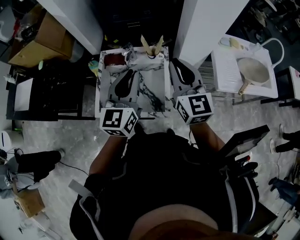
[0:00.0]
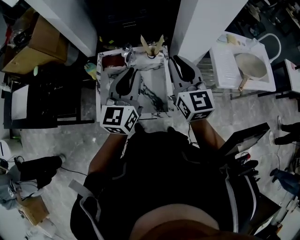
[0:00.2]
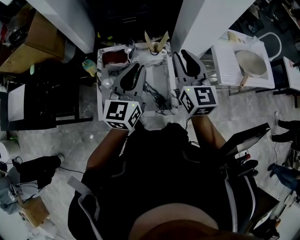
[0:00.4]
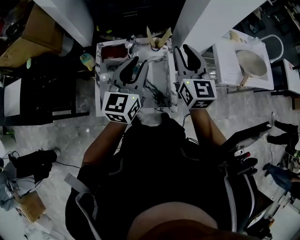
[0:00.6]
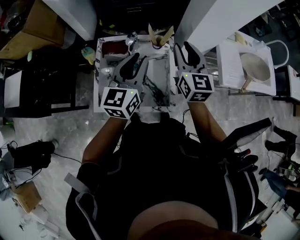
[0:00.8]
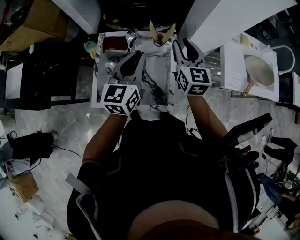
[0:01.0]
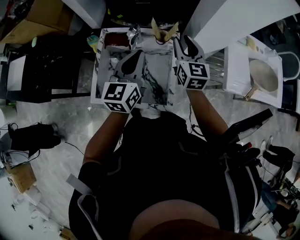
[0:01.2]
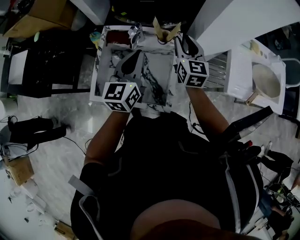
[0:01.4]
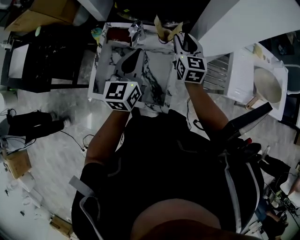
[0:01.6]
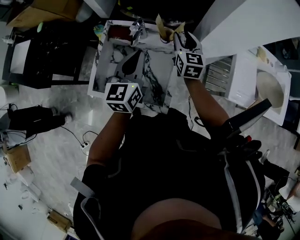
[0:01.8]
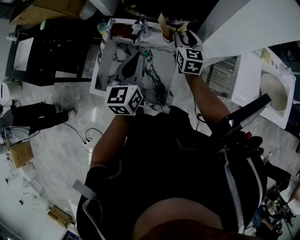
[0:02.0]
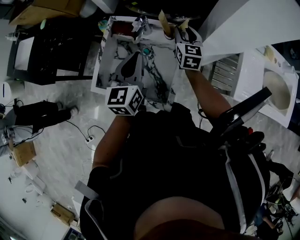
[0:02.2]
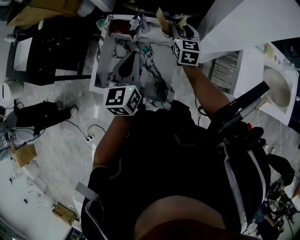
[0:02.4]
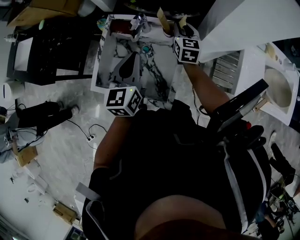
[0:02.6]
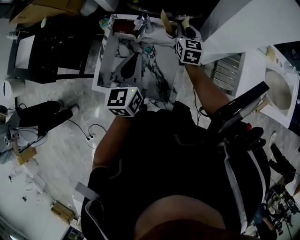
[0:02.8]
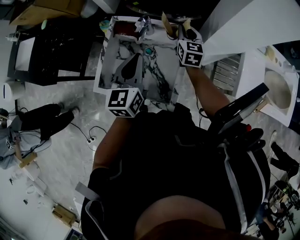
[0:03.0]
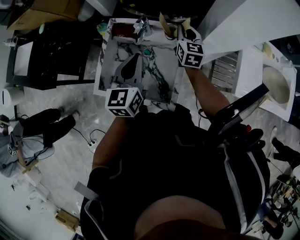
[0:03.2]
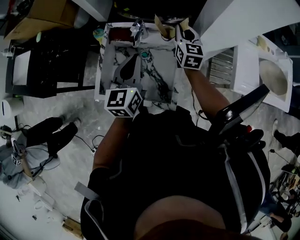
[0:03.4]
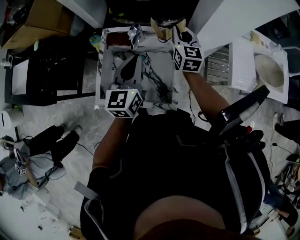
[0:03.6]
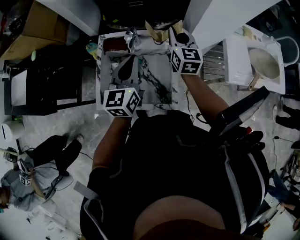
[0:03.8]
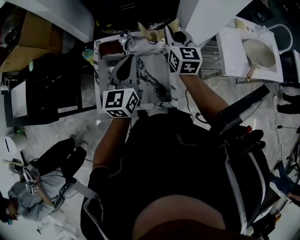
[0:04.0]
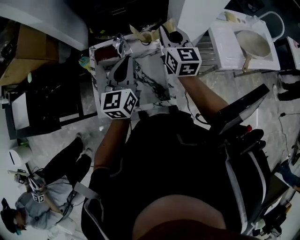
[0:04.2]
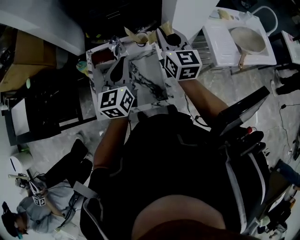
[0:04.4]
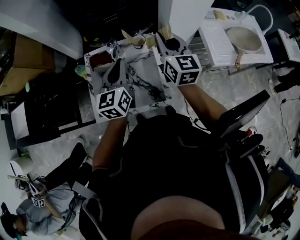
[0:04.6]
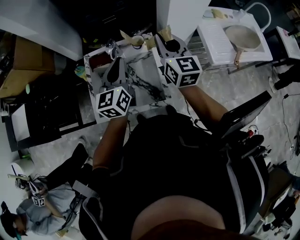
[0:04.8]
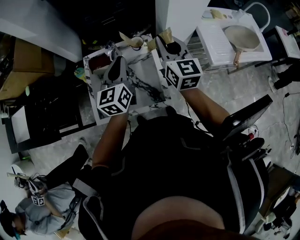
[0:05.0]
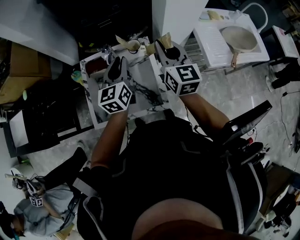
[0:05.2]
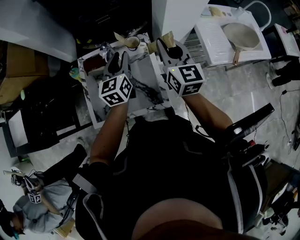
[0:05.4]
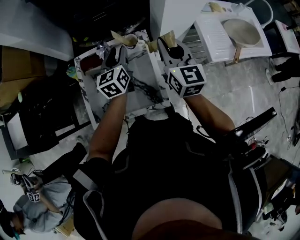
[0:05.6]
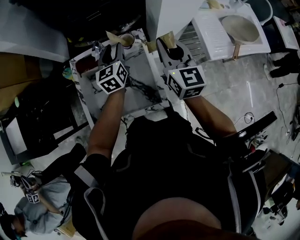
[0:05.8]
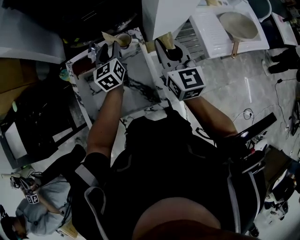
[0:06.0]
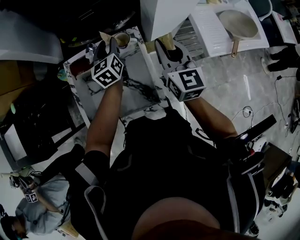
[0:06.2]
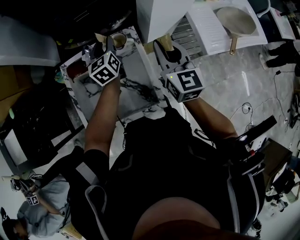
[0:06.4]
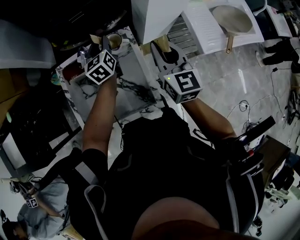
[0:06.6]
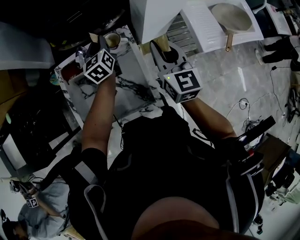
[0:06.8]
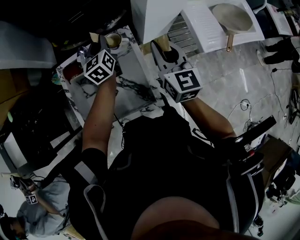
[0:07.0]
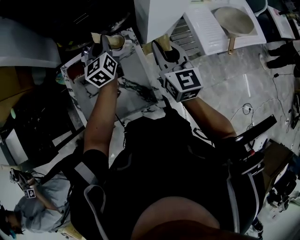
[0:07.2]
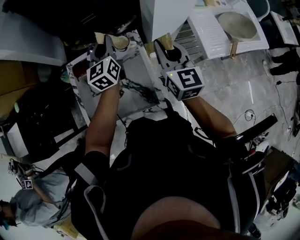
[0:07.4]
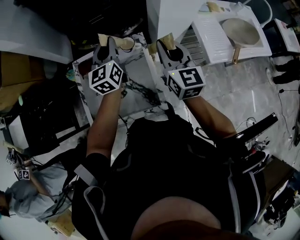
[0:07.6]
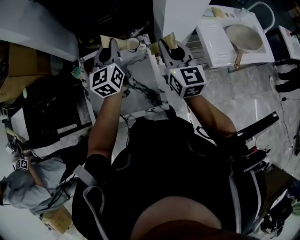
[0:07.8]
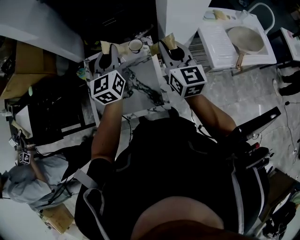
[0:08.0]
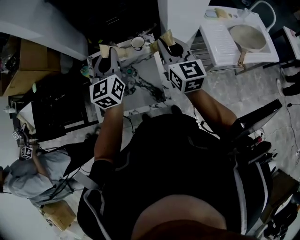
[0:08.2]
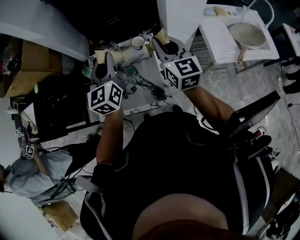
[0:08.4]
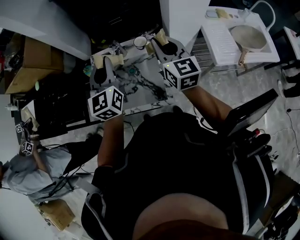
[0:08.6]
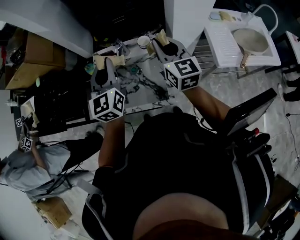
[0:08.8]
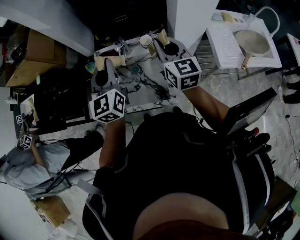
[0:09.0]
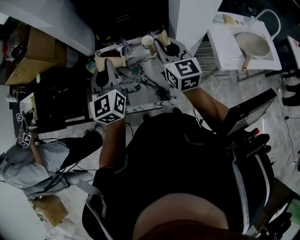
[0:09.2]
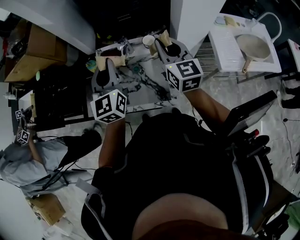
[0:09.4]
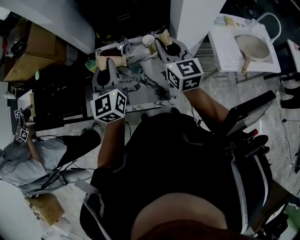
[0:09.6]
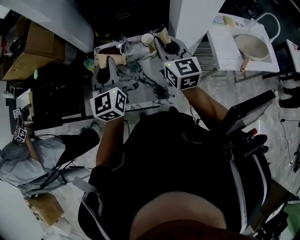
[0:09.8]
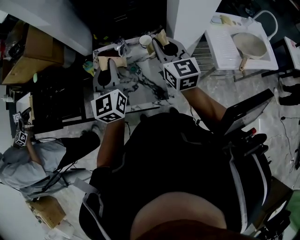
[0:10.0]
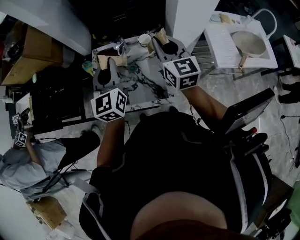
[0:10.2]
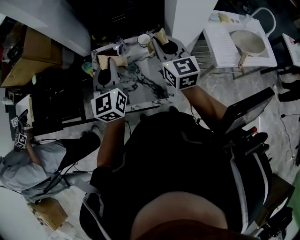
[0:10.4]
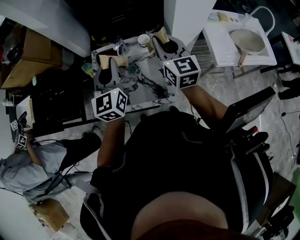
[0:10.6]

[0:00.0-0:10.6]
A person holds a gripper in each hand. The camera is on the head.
0:00.0 to 0:01.6: The right gripper shifts some 25 cm forward and downward, and opens its fingers, while the left gripper shifts roughly 15 cm downward and forward.
0:01.6 to 0:03.0: The right gripper shifts roughly 10 cm downward and forward, and closes.
0:03.0 to 0:04.6: The right gripper heads upward and backward, covering about 25 cm.
0:04.6 to 0:06.0: The right gripper shifts by roughly 5 cm. Meanwhile the left gripper heads forward and downward, covering approximately 20 cm, and opens.
0:06.0 to 0:07.6: The left gripper goes roughly 10 cm upward, and closes up.
0:07.6 to 0:09.0: The left gripper is displaced backward, to the left and upward by about 20 cm, while the right gripper is displaced to the left by some 5 cm.
0:09.0 to 0:10.6: There are only small adjustments of the grippers.

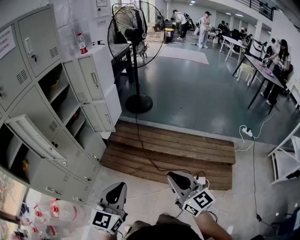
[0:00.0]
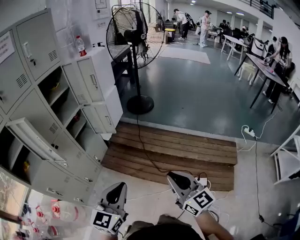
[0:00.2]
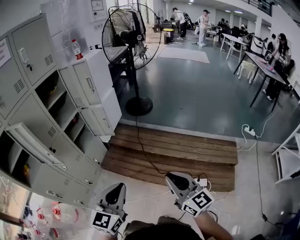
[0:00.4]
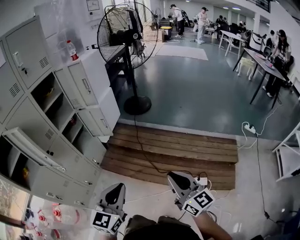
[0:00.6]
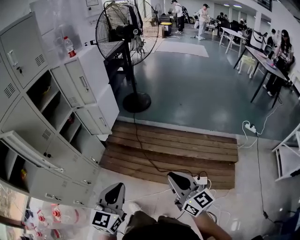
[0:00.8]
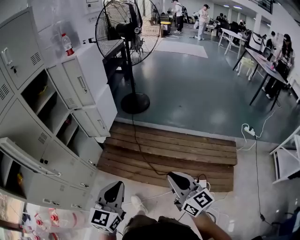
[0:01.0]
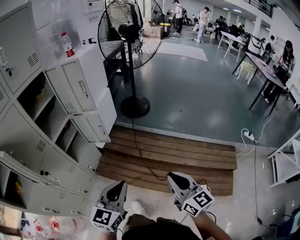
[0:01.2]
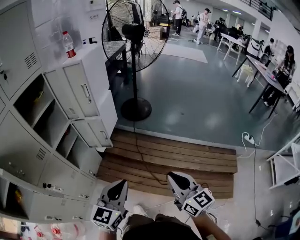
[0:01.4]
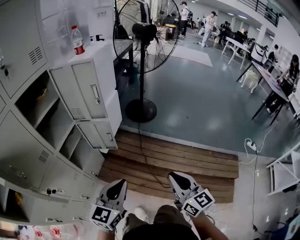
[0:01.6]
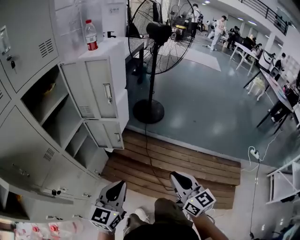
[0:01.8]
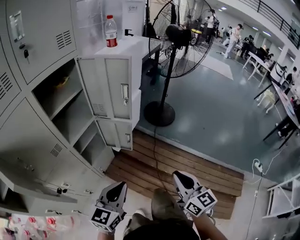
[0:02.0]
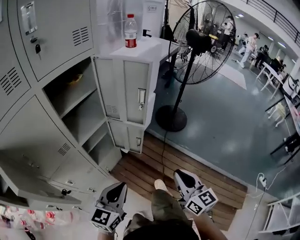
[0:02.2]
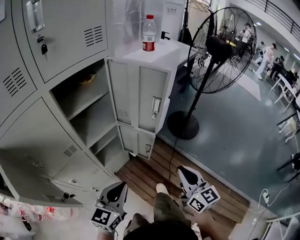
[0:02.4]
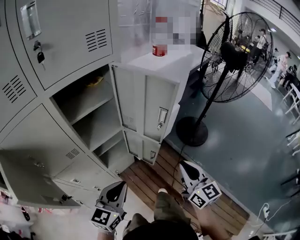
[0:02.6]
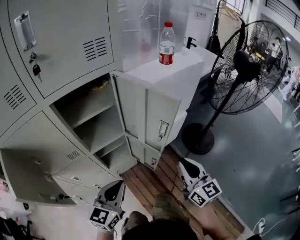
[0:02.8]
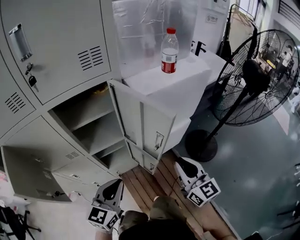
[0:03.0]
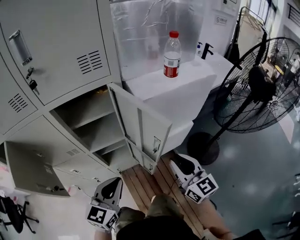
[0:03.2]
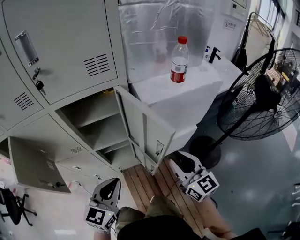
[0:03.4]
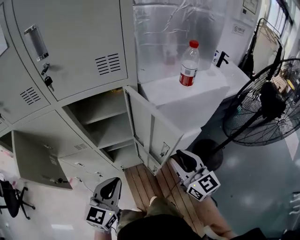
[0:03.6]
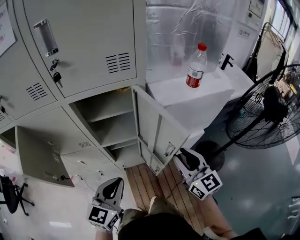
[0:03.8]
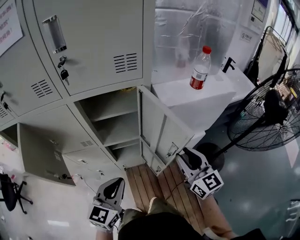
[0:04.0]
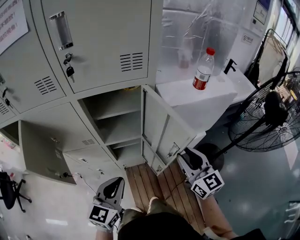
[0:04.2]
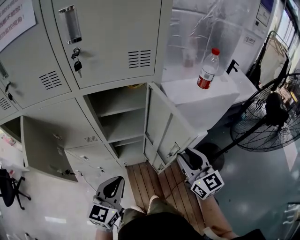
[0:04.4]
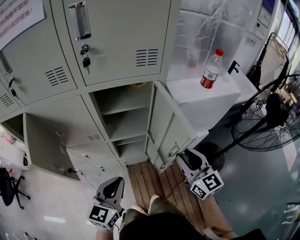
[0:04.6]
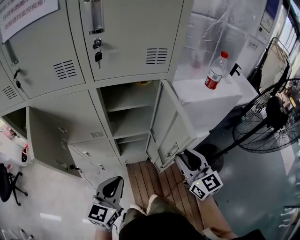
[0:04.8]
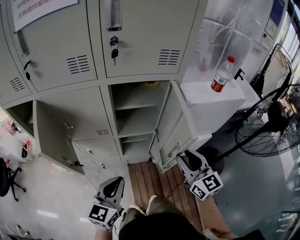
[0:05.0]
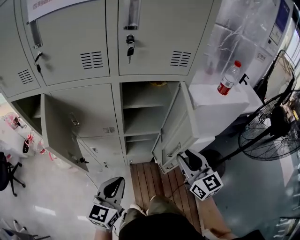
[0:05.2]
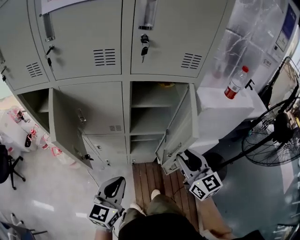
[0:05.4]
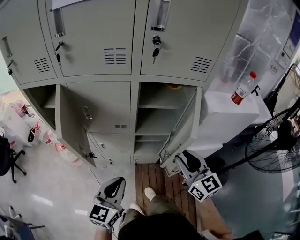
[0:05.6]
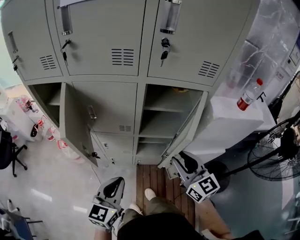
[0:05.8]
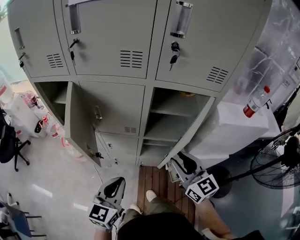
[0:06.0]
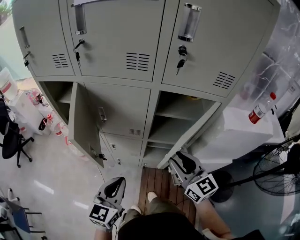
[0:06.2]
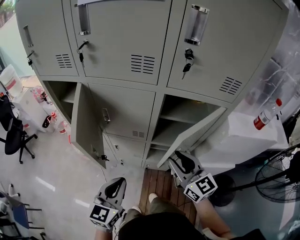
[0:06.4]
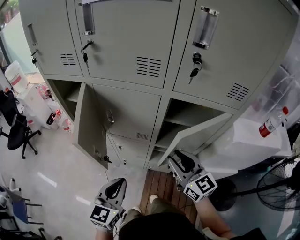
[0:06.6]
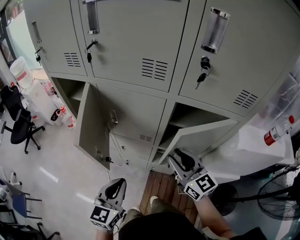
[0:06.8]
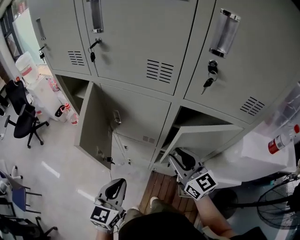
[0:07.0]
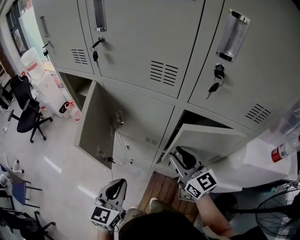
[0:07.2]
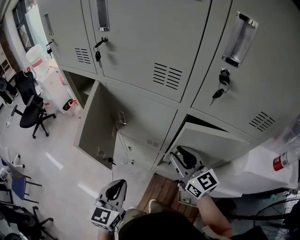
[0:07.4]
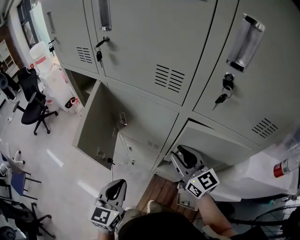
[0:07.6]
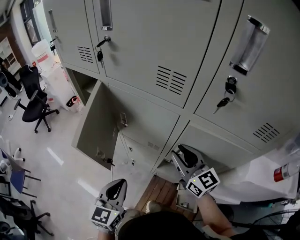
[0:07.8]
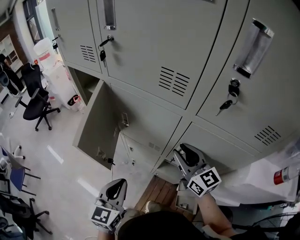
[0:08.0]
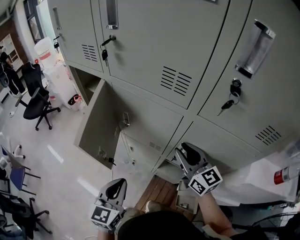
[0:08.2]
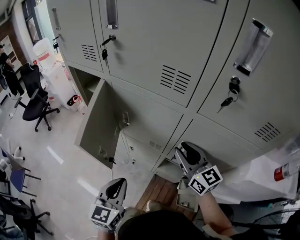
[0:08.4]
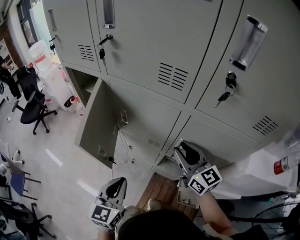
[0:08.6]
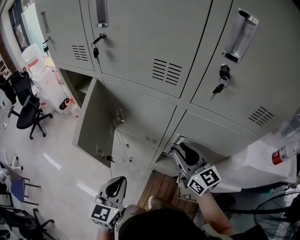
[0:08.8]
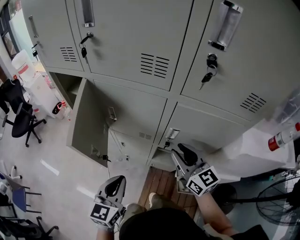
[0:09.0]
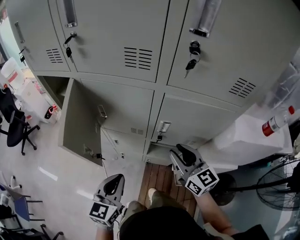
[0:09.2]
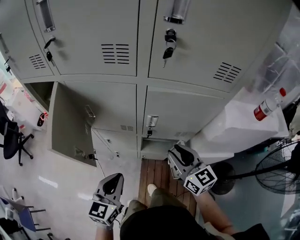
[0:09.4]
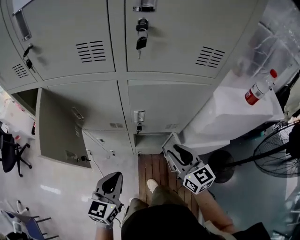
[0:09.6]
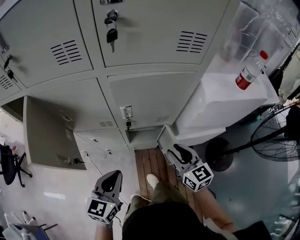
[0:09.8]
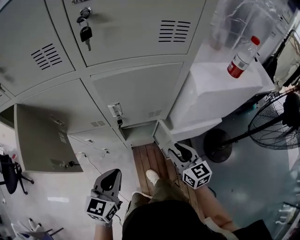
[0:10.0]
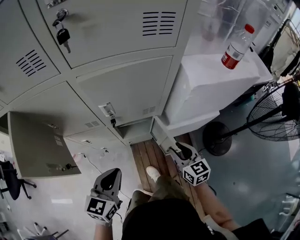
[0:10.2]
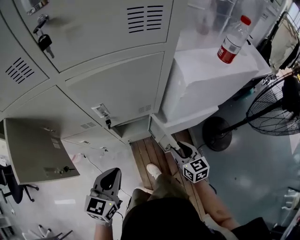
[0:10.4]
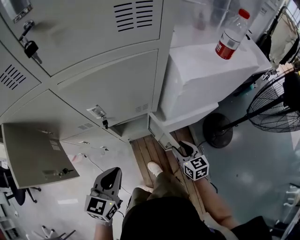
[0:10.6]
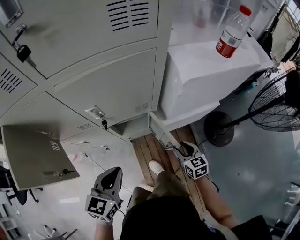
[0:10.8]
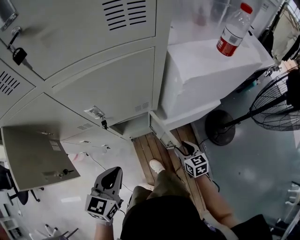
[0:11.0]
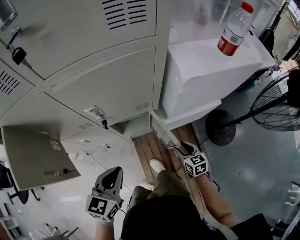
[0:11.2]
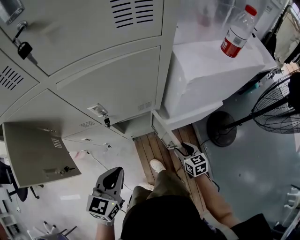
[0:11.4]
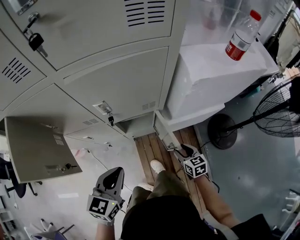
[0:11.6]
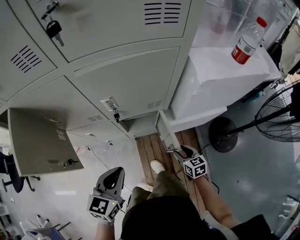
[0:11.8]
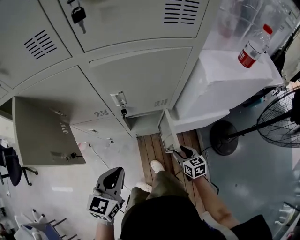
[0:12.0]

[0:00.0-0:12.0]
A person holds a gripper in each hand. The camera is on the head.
0:00.0 to 0:01.6: Both grippers move forward, some 30 cm.
0:01.6 to 0:03.0: The right gripper changes place by about 50 cm, and turns by some 40 degrees. The left gripper moves about 30 cm, and rotates some 40 degrees.
0:03.0 to 0:04.4: The left gripper ends up about 5 cm from where it was. Meanwhile the right gripper moves forward and upward, some 10 cm.
0:04.4 to 0:06.0: The grippers both shift to the left by about 20 cm. The right gripper changes its angle by roughly 20 degrees.
0:06.0 to 0:07.6: The right gripper travels forward by some 15 cm, and changes its angle by about 20 degrees, while the left gripper shifts some 5 cm forward, and turns by roughly 20 degrees.
0:07.6 to 0:09.0: The grippers stay close to where they were, moving slightly.
0:09.0 to 0:10.4: The right gripper shifts by approximately 35 cm, and rotates approximately 40 degrees. The left gripper ends up about 15 cm from where it was, and turns by roughly 30 degrees.
0:10.4 to 0:12.0: The right gripper shifts approximately 10 cm downward.

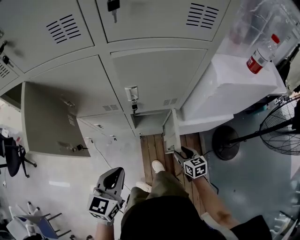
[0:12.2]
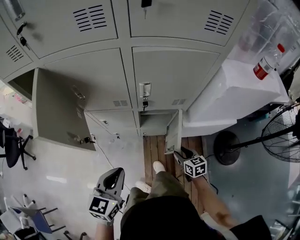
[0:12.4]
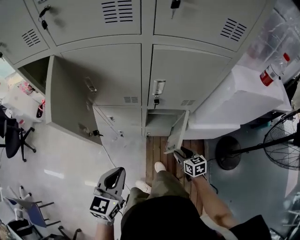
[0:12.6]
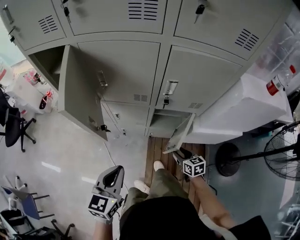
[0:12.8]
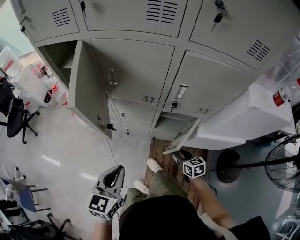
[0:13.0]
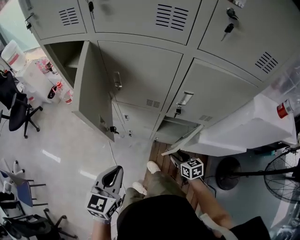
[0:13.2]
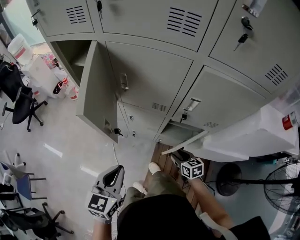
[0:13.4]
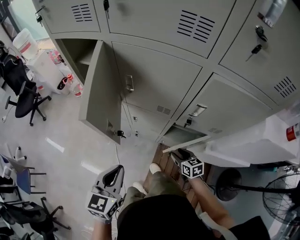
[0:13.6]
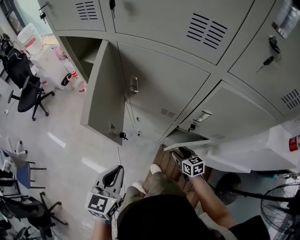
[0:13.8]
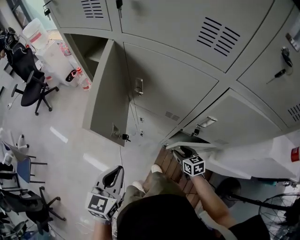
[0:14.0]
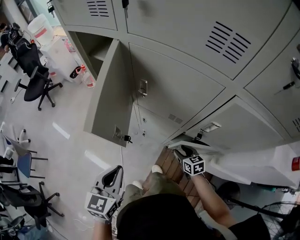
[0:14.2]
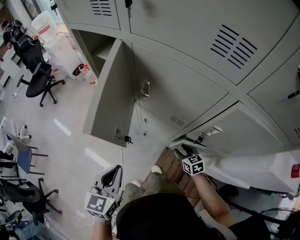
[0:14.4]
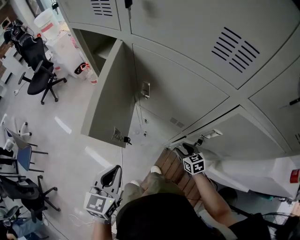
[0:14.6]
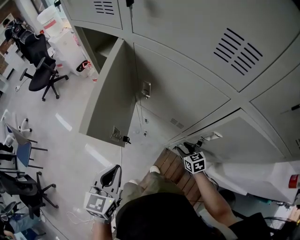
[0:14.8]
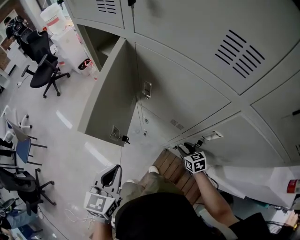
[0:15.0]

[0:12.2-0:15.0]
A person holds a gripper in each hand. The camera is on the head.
0:12.2 to 0:13.6: The right gripper shifts by approximately 20 cm, and swivels some 30 degrees, while the left gripper ends up roughly 15 cm from where it was, and rotates about 30 degrees.
0:13.6 to 0:15.0: The right gripper is displaced forward by roughly 10 cm.
